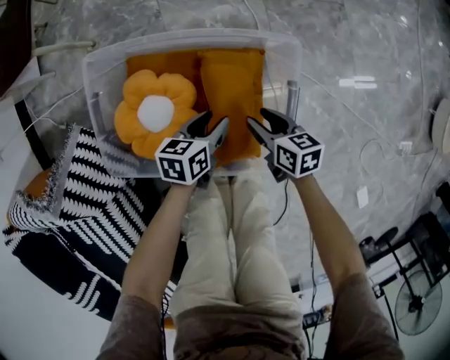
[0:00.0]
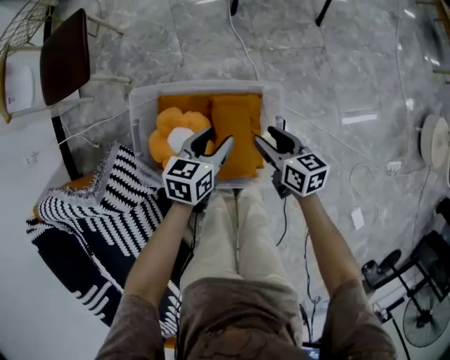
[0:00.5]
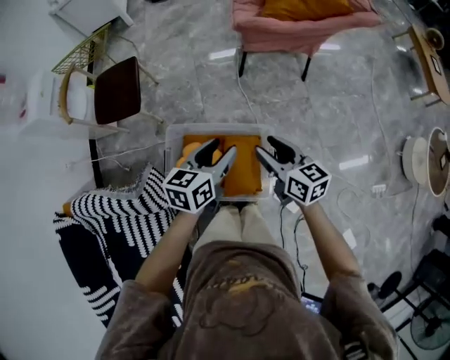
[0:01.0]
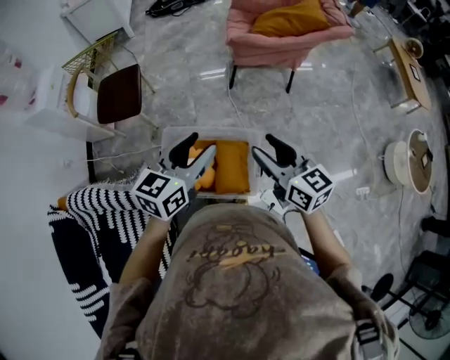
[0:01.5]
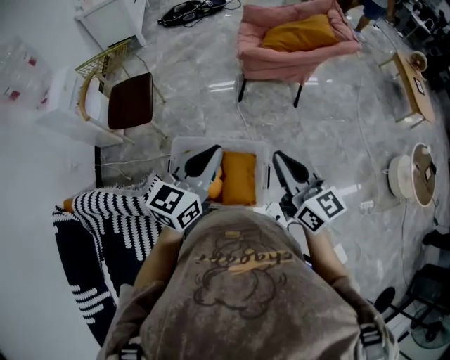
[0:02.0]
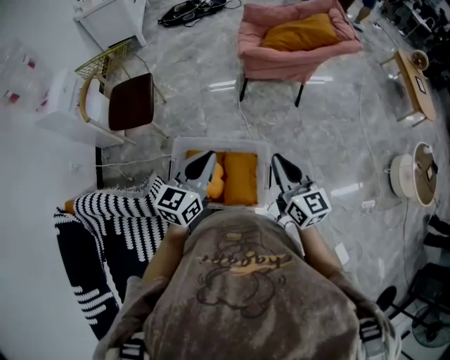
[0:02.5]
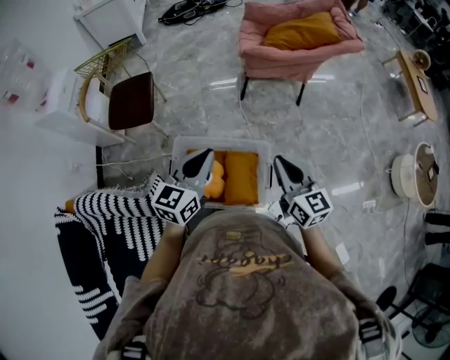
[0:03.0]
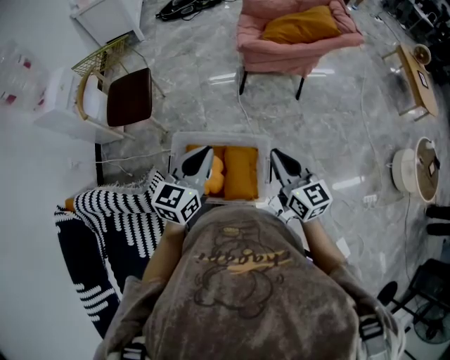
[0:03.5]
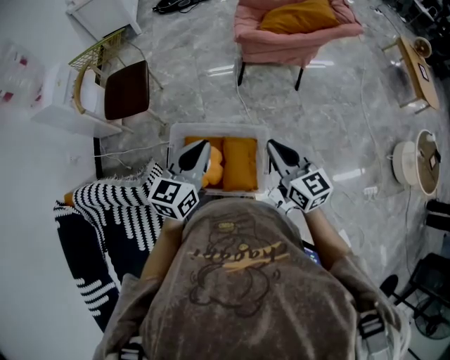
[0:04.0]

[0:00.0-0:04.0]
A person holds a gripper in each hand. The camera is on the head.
0:00.0 to 0:02.0: Both grippers travel together upward, about 80 cm. The left gripper tips its fingers upward by roughly 40 degrees, and closes, while the right gripper tips its fingers upward by some 40 degrees, and closes up.
0:02.0 to 0:04.0: The grippers both shift downward by some 10 cm.

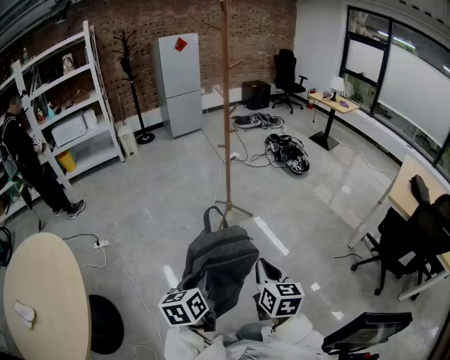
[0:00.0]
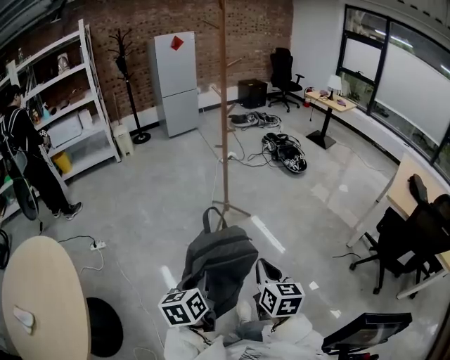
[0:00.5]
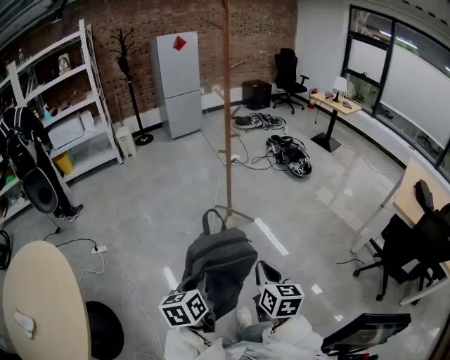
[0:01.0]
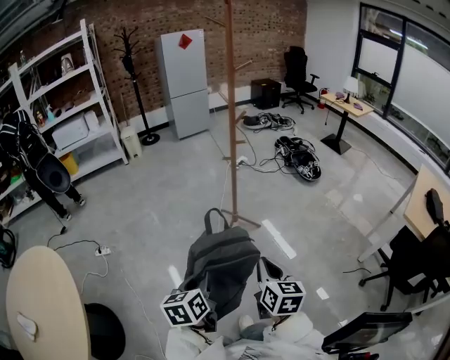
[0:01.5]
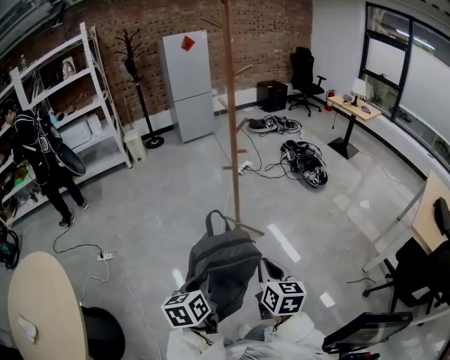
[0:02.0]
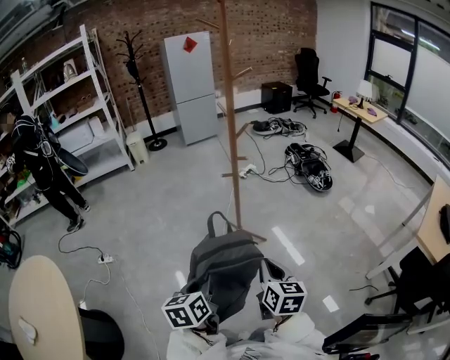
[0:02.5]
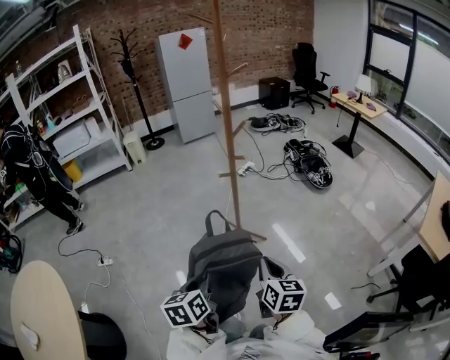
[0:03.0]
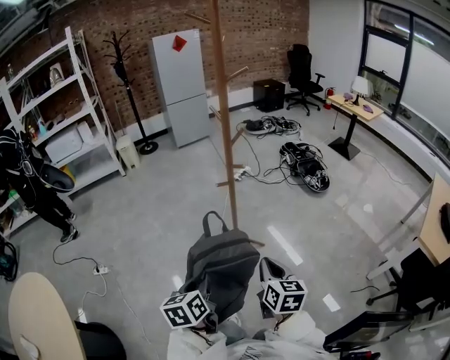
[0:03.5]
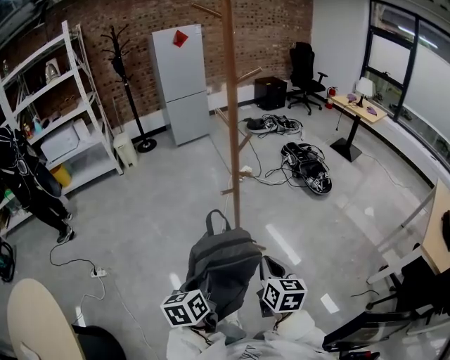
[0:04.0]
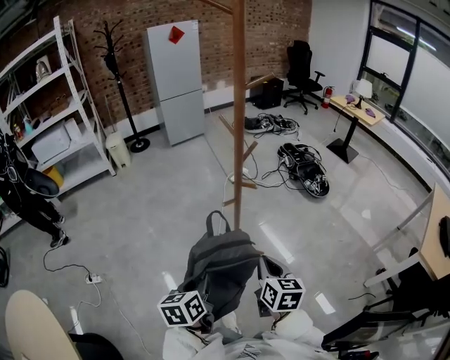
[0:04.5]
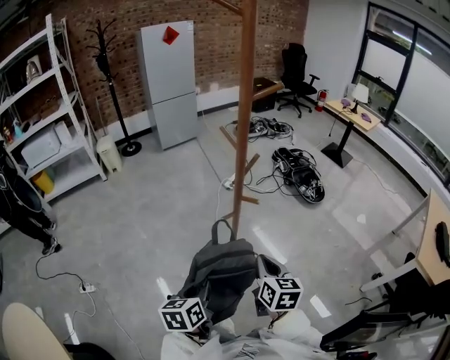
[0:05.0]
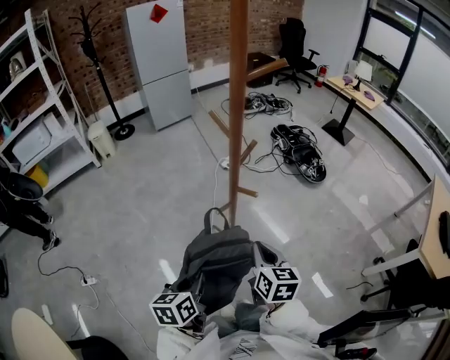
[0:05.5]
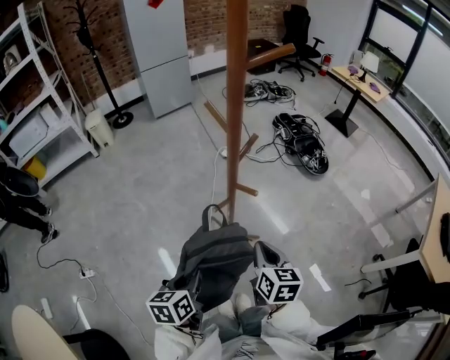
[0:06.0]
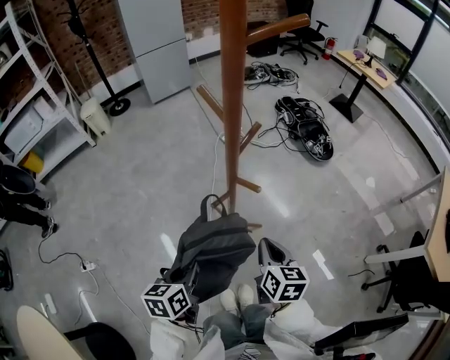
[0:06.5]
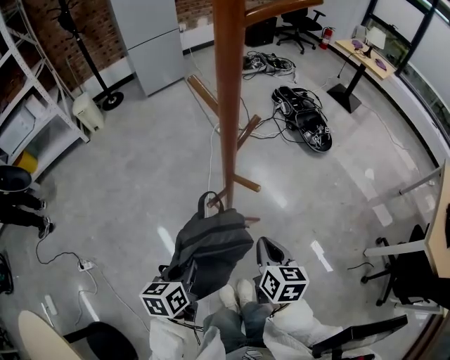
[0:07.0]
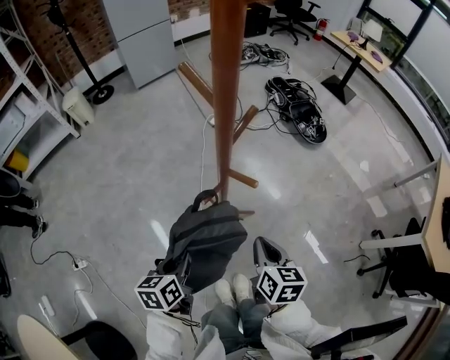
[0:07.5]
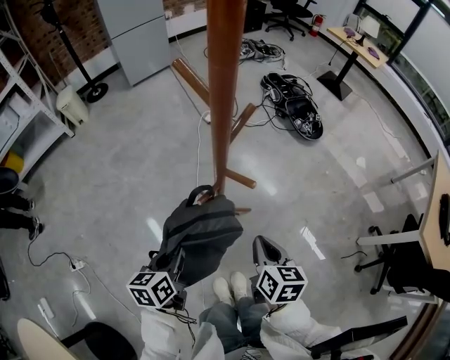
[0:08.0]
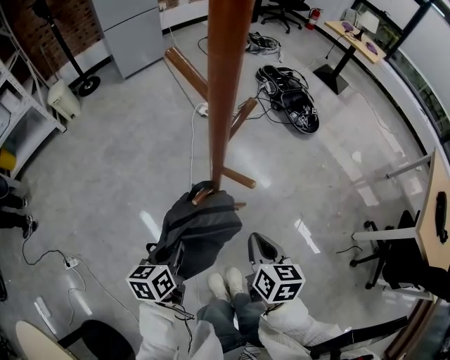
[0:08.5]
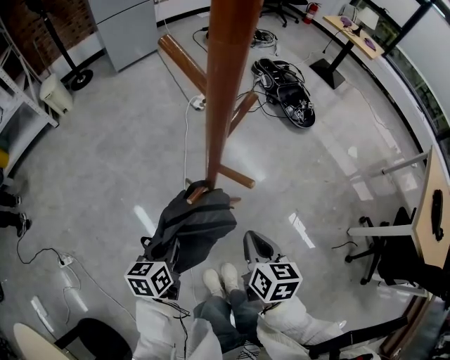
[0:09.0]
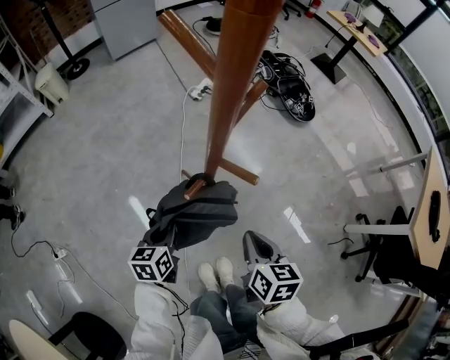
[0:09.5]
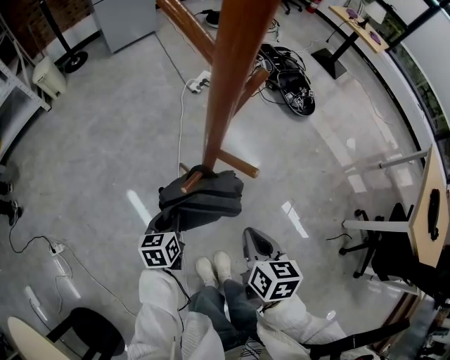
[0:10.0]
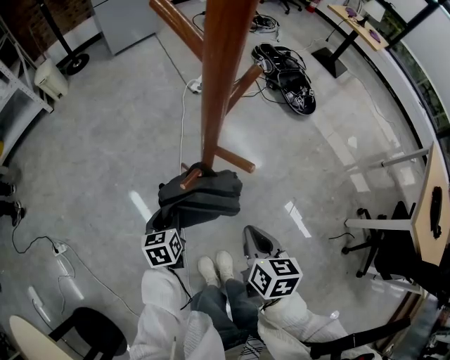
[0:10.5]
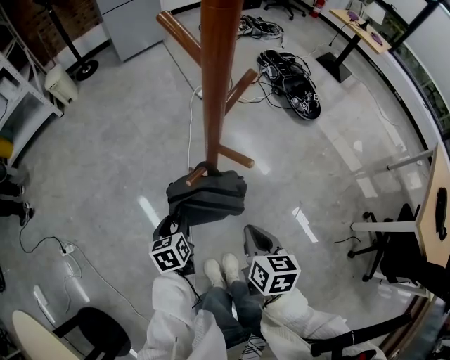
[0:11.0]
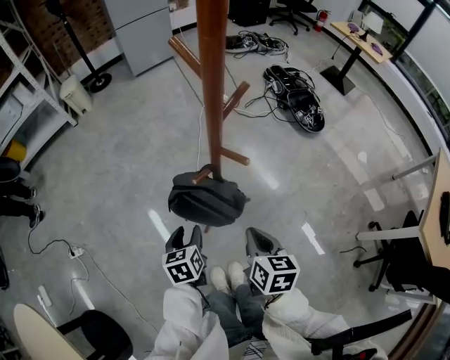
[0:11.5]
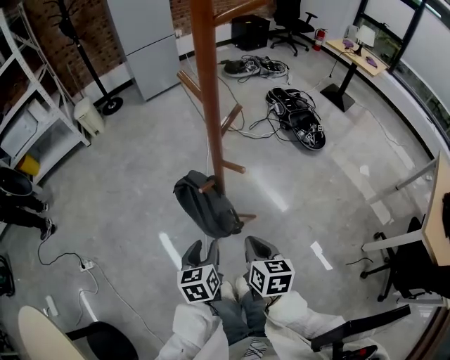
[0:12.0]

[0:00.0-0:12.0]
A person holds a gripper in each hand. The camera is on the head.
0:00.0 to 0:02.0: Both grippers move forward, some 20 cm.
0:02.0 to 0:04.0: Both grippers move forward, approximately 20 cm.
0:04.0 to 0:06.0: The grippers both shift forward by some 15 cm.
0:06.0 to 0:08.0: The right gripper heads downward, covering about 5 cm; the left gripper heads forward and downward, covering about 10 cm.
0:08.0 to 0:10.0: The left gripper is displaced downward and forward by roughly 15 cm.
0:10.0 to 0:12.0: The right gripper moves roughly 5 cm; the left gripper heads upward and backward, covering roughly 15 cm, and opens.

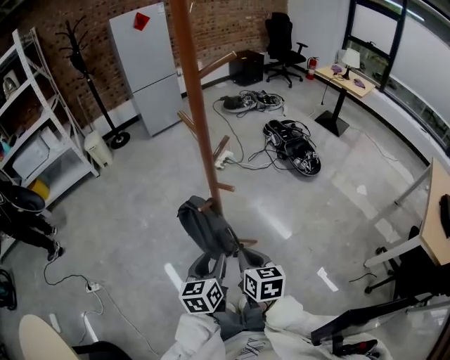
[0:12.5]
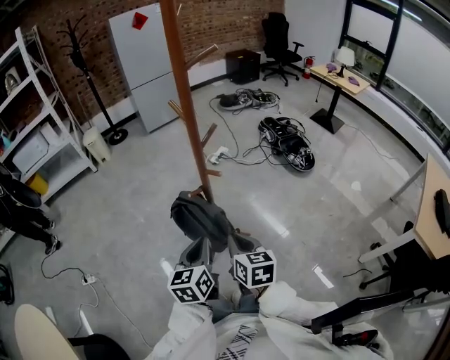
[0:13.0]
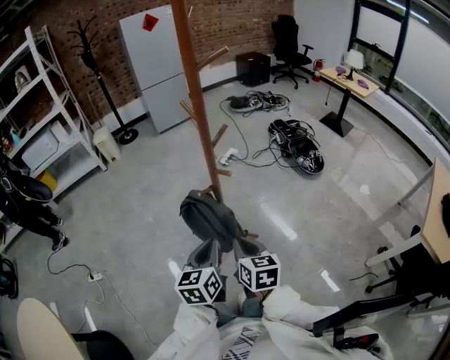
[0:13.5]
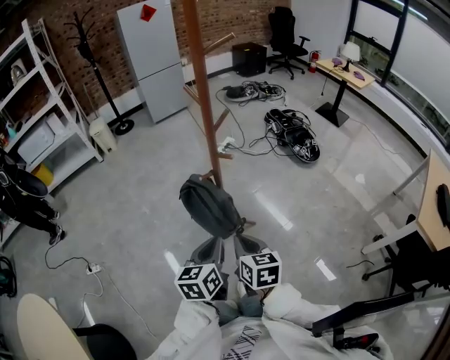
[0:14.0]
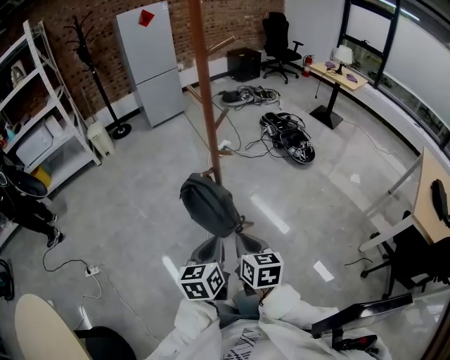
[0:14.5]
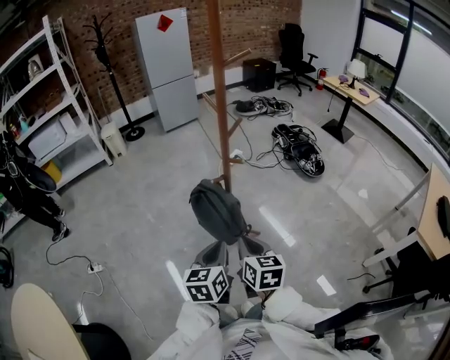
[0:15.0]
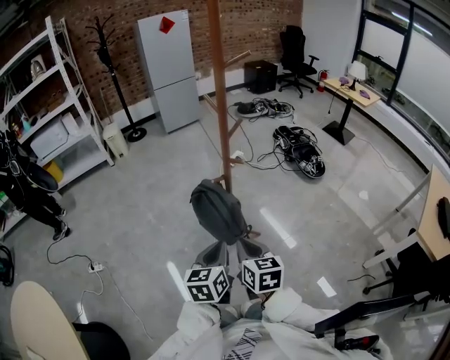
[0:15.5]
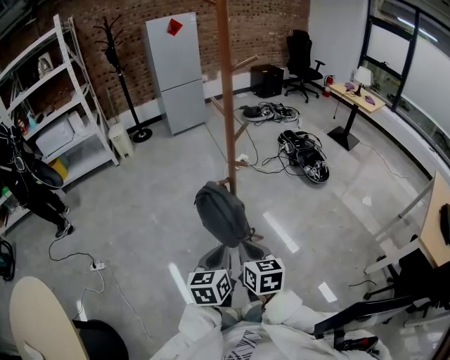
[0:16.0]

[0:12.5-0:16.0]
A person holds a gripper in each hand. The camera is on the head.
0:12.5 to 0:14.5: Both grippers move backward, some 10 cm. The left gripper closes up.
0:14.5 to 0:16.0: The grippers make only small movements.

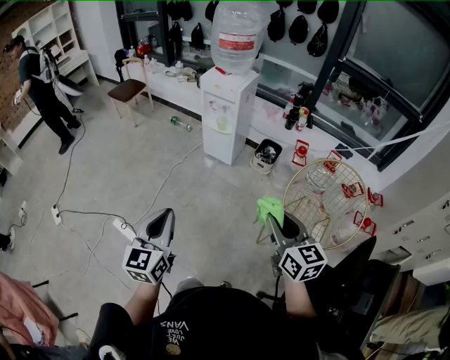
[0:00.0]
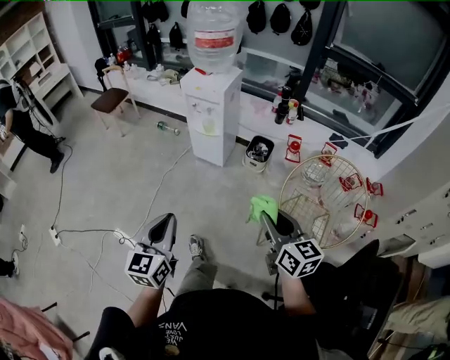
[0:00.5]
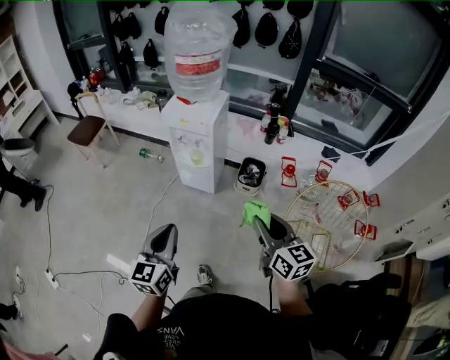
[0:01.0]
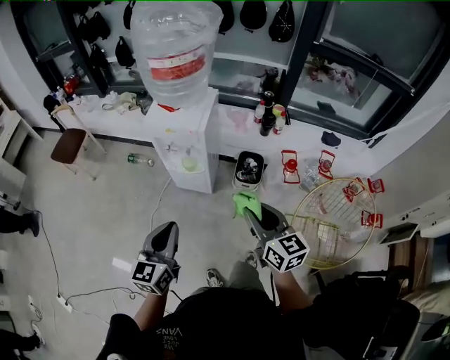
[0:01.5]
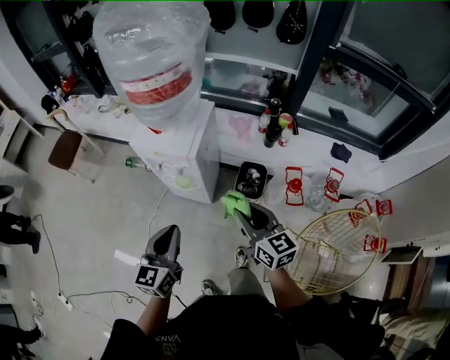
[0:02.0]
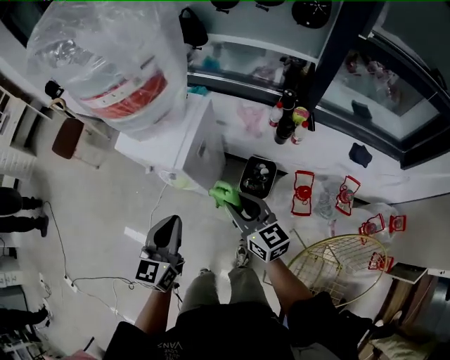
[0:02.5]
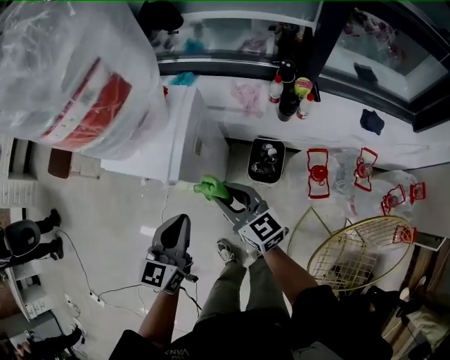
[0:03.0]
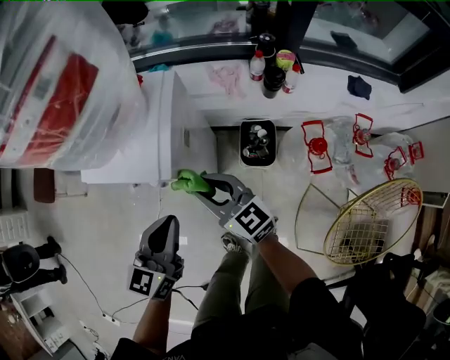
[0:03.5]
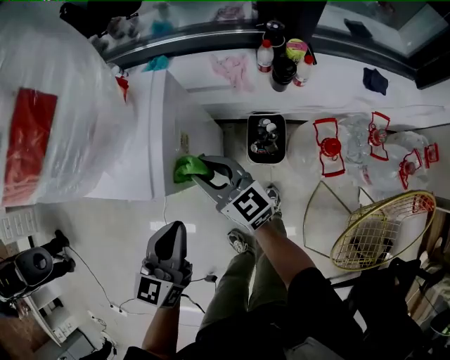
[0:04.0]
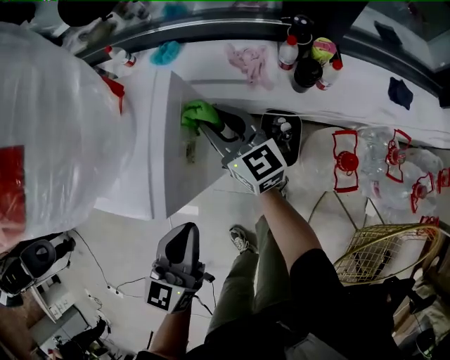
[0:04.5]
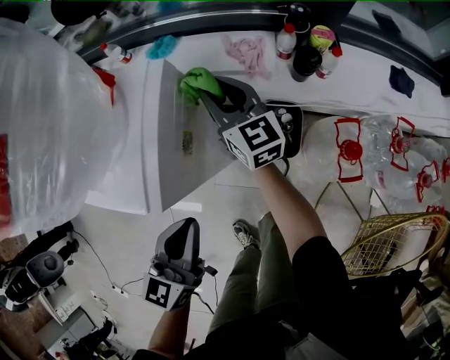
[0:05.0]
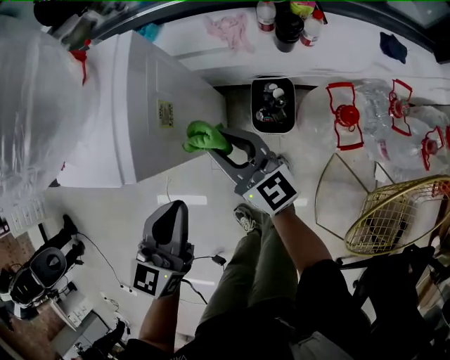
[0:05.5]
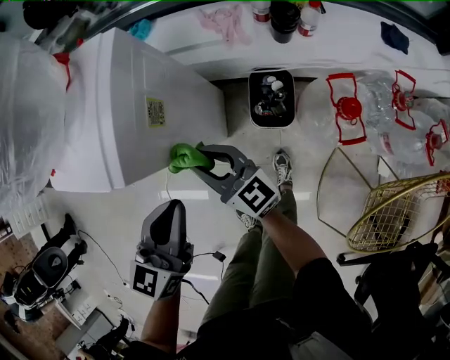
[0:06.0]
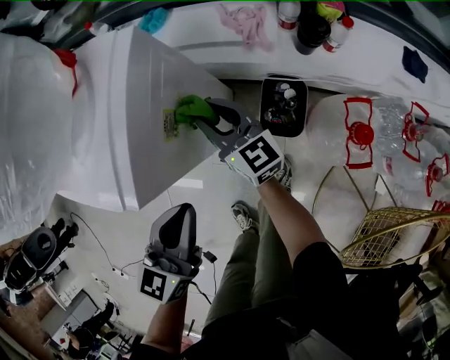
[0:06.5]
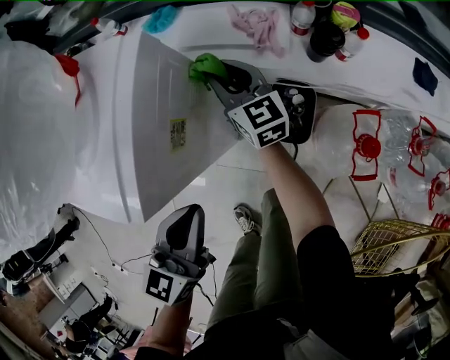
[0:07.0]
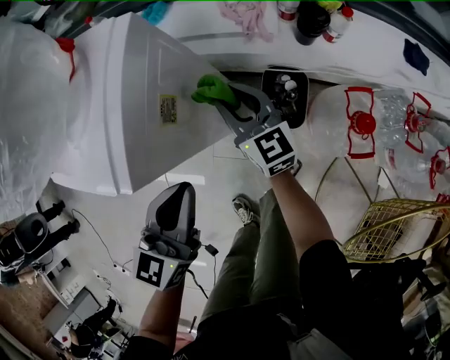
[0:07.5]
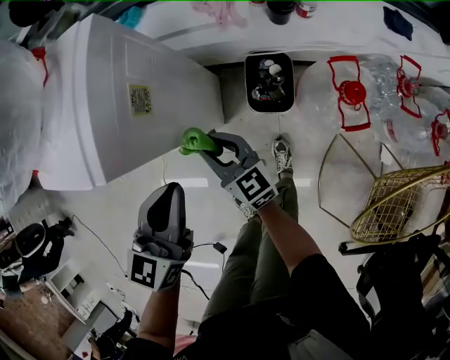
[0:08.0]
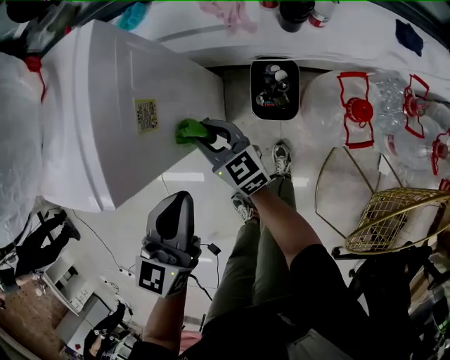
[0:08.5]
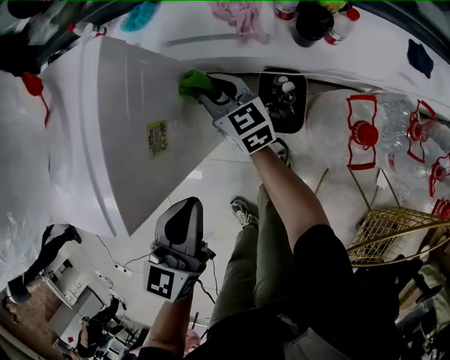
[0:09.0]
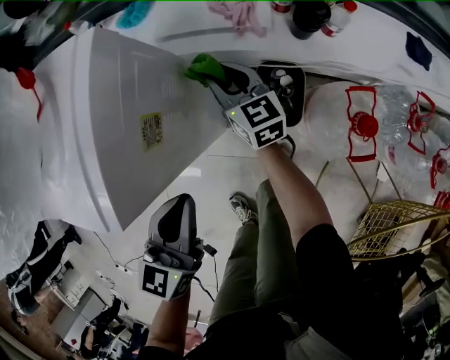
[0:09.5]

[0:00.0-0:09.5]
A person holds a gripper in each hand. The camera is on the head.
0:00.0 to 0:02.0: The two grippers travel together, forward, some 50 cm.
0:02.0 to 0:04.0: The two grippers go some 25 cm forward and downward.
0:04.0 to 0:05.5: The right gripper is displaced to the right by approximately 5 cm, and moves about 15 cm forward and comes back.
0:05.5 to 0:07.5: The right gripper travels forward and downward by about 10 cm.
0:07.5 to 0:09.5: The right gripper shifts about 5 cm downward, and goes backward and returns, approximately 15 cm each way.
